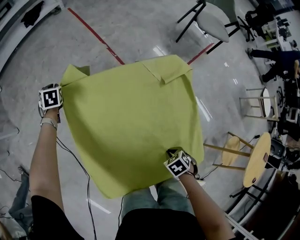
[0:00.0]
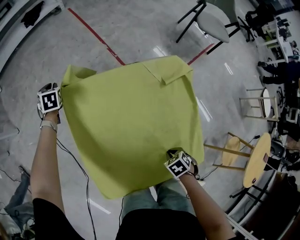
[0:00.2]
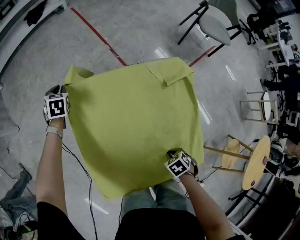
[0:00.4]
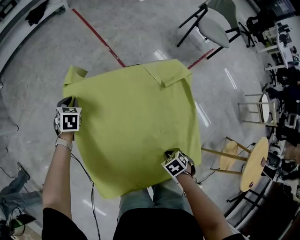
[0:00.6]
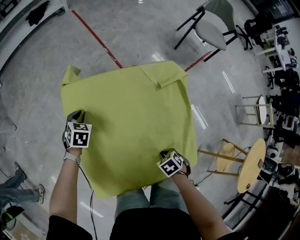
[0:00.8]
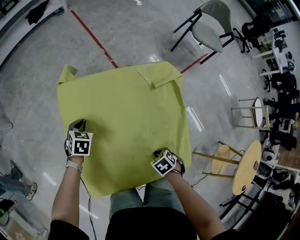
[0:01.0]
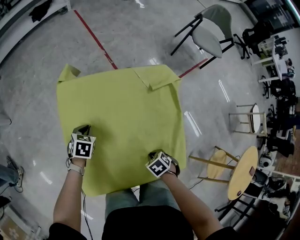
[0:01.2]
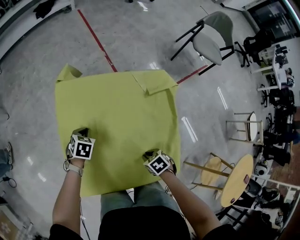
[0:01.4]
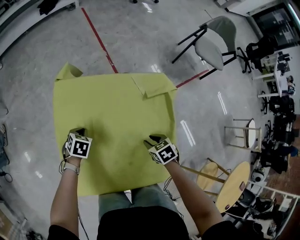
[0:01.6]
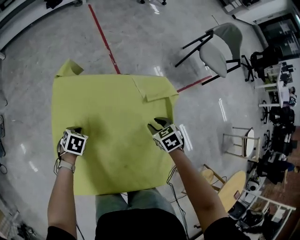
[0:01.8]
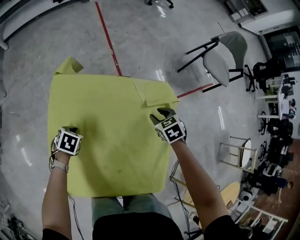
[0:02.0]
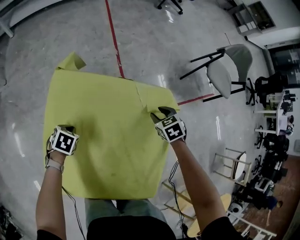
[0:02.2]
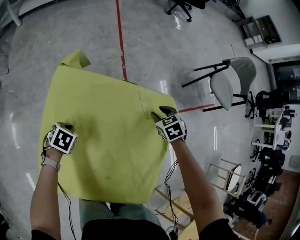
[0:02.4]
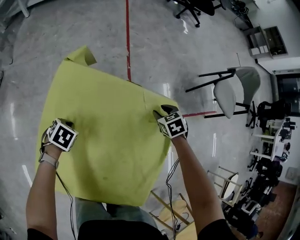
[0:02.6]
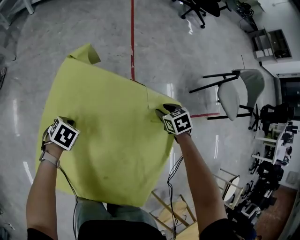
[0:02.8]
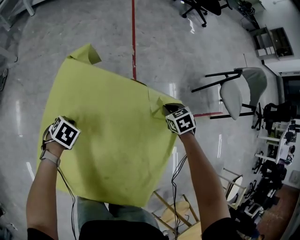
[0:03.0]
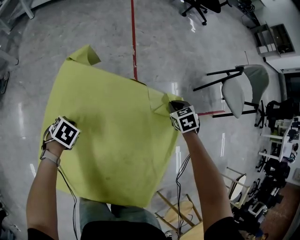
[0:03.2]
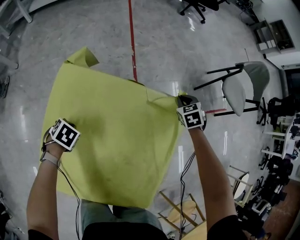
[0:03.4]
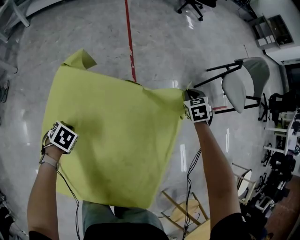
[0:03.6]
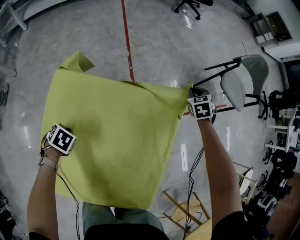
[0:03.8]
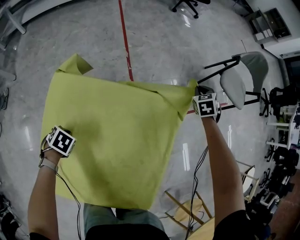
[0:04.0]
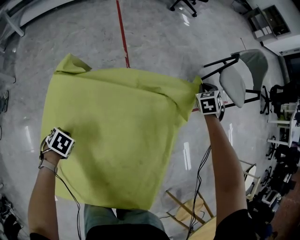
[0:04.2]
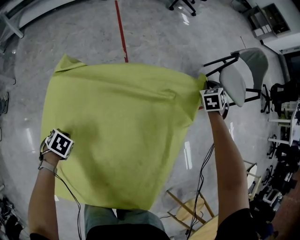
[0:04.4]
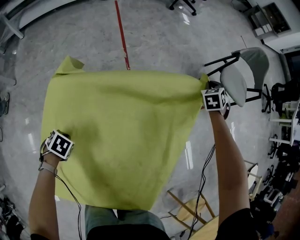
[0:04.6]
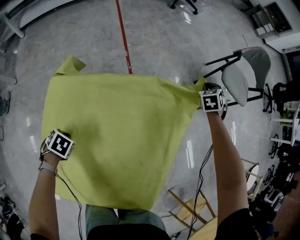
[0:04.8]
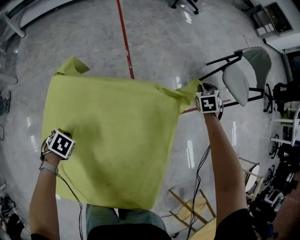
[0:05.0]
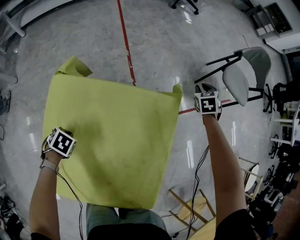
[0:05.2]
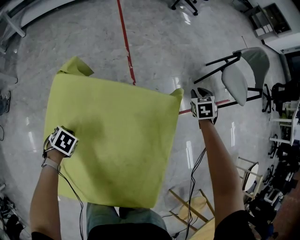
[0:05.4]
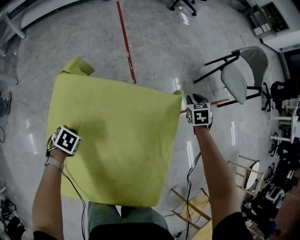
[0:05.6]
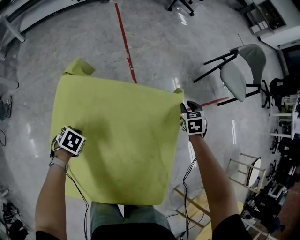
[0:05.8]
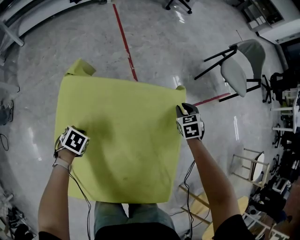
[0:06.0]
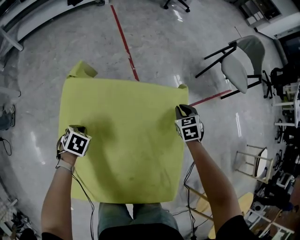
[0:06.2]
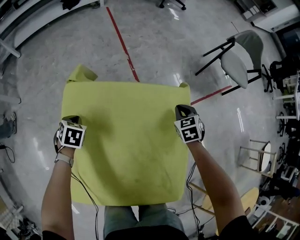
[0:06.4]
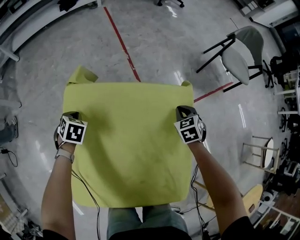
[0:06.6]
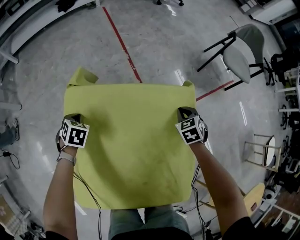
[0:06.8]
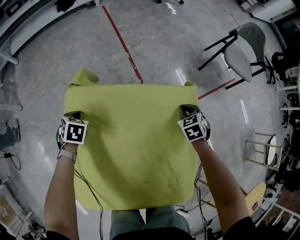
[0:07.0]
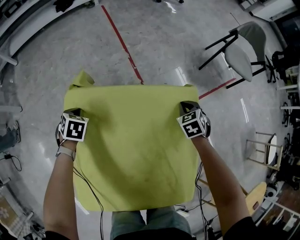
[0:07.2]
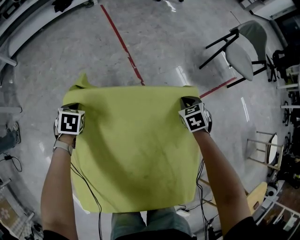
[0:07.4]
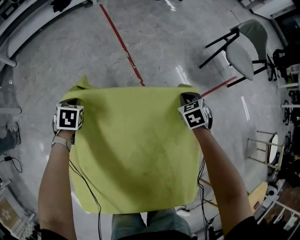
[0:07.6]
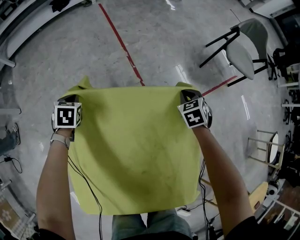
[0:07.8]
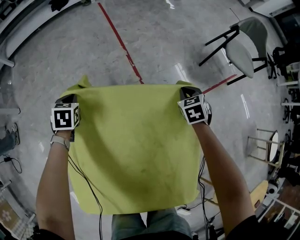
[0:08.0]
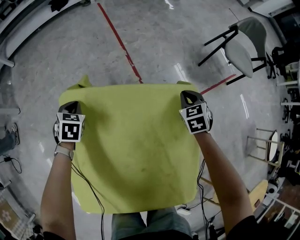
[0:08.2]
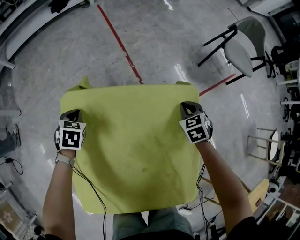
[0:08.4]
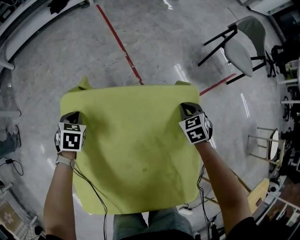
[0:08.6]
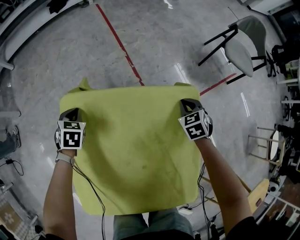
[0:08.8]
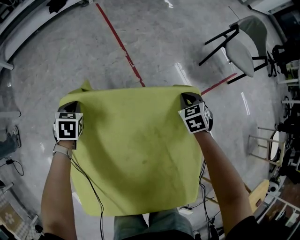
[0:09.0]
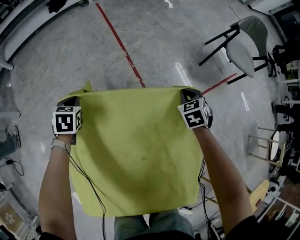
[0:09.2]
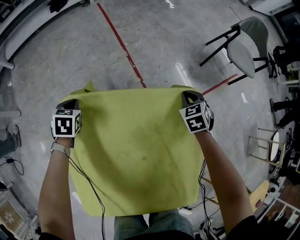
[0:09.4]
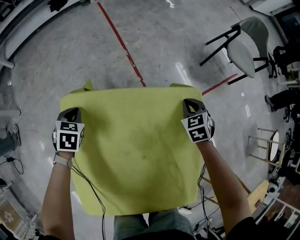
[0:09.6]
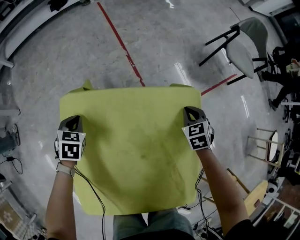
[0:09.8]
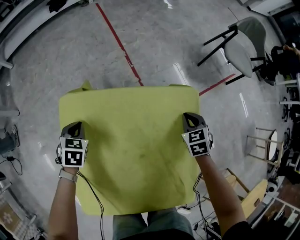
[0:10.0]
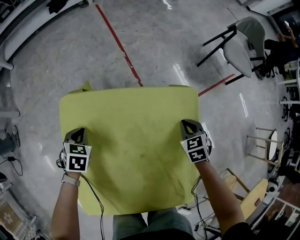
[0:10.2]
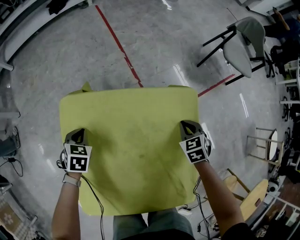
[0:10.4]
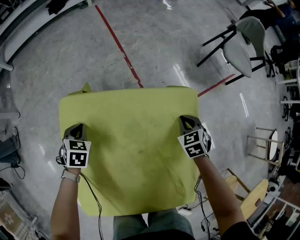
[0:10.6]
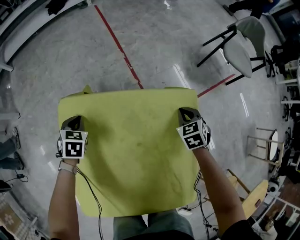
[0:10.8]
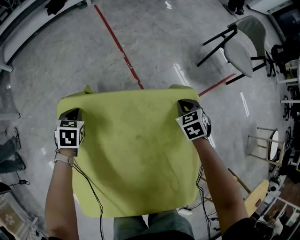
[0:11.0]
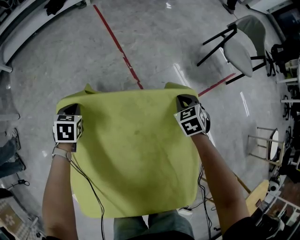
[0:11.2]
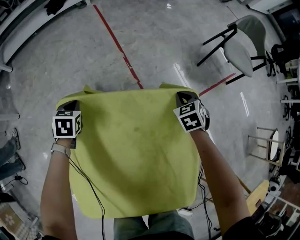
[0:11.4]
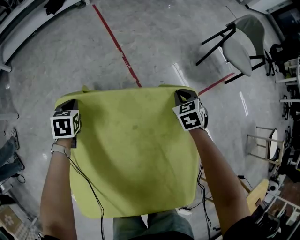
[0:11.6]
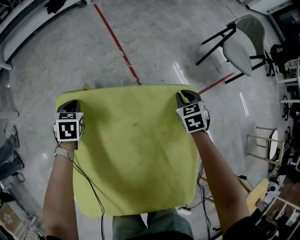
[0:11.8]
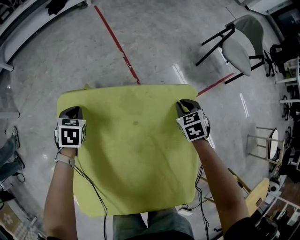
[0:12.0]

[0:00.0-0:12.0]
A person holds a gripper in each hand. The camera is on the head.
0:00.0 to 0:01.6: The left gripper changes place by about 35 cm, and changes its angle by approximately 20 degrees, while the right gripper ends up approximately 15 cm from where it was.
0:01.6 to 0:03.0: The right gripper ends up approximately 30 cm from where it was, rotates roughly 30 degrees, and closes.
0:03.0 to 0:04.4: The right gripper moves approximately 30 cm, and swivels some 40 degrees.
0:04.4 to 0:06.0: The right gripper shifts by some 25 cm, and rotates some 20 degrees.
0:06.0 to 0:07.6: The left gripper shifts by approximately 25 cm, and turns by some 20 degrees, while the right gripper shifts by roughly 5 cm, and closes its fingers.
0:07.6 to 0:09.0: There are only small adjustments of the grippers.
0:09.0 to 0:10.4: Both grippers travel together backward, roughly 10 cm.
0:10.4 to 0:12.0: Both grippers travel together forward, about 10 cm.

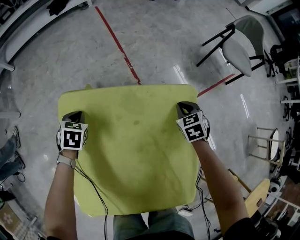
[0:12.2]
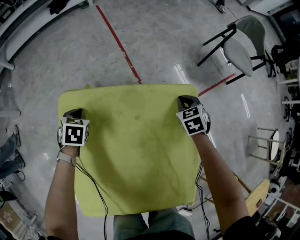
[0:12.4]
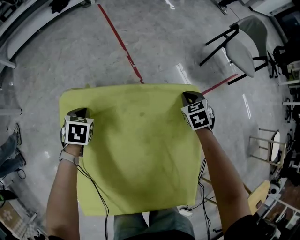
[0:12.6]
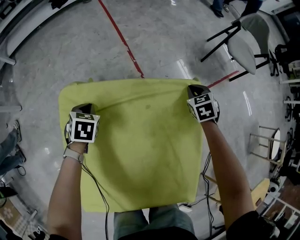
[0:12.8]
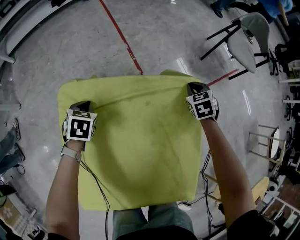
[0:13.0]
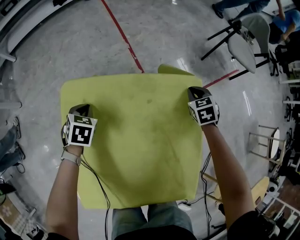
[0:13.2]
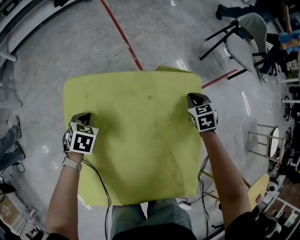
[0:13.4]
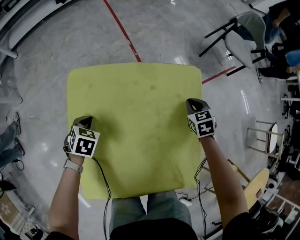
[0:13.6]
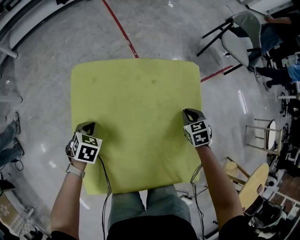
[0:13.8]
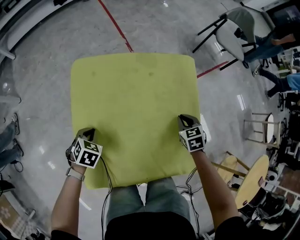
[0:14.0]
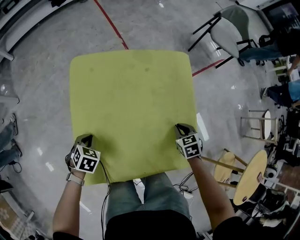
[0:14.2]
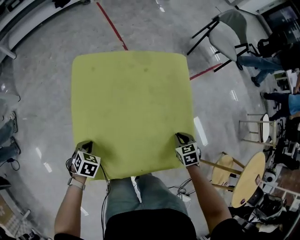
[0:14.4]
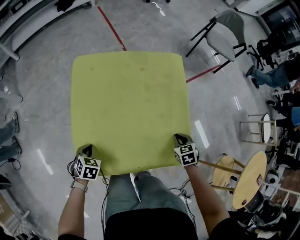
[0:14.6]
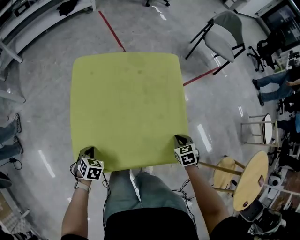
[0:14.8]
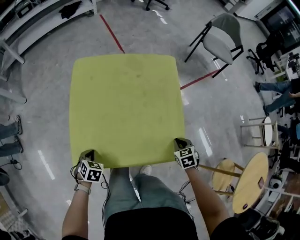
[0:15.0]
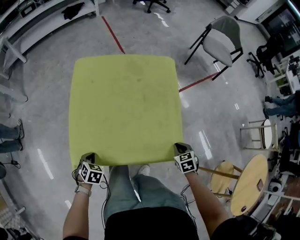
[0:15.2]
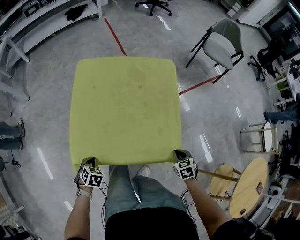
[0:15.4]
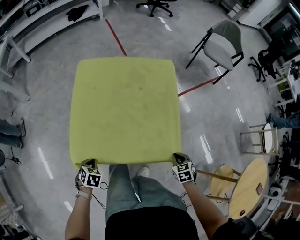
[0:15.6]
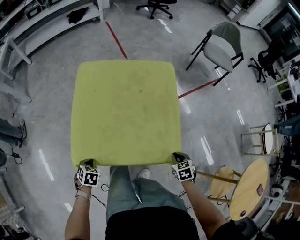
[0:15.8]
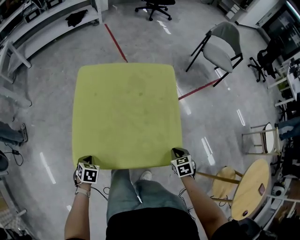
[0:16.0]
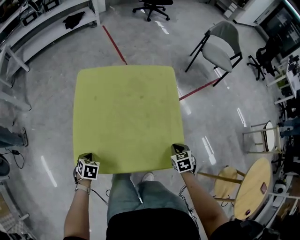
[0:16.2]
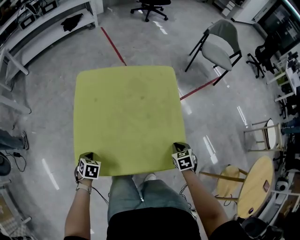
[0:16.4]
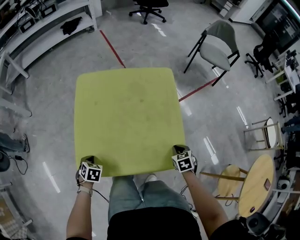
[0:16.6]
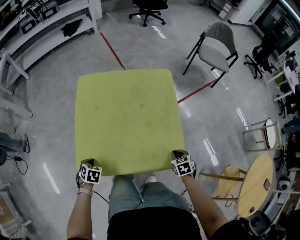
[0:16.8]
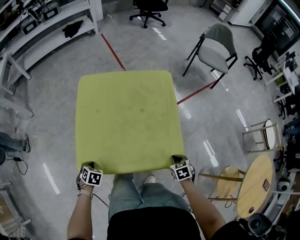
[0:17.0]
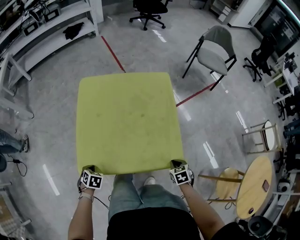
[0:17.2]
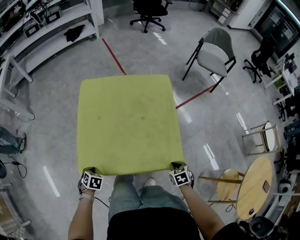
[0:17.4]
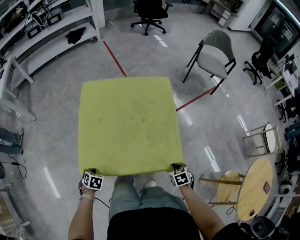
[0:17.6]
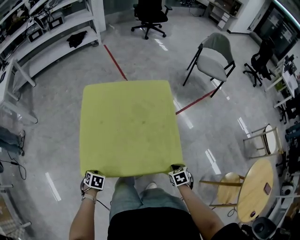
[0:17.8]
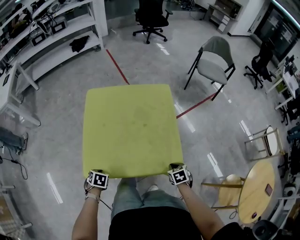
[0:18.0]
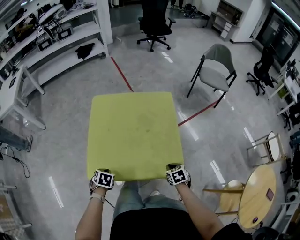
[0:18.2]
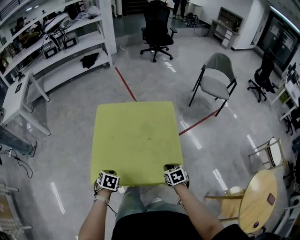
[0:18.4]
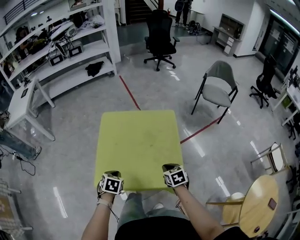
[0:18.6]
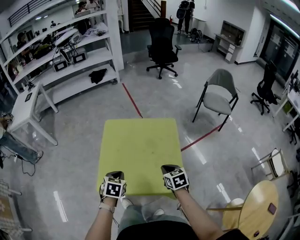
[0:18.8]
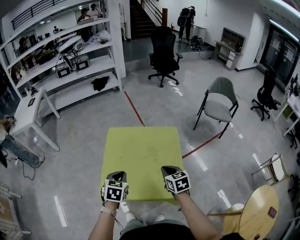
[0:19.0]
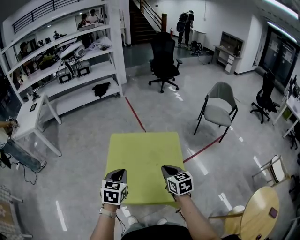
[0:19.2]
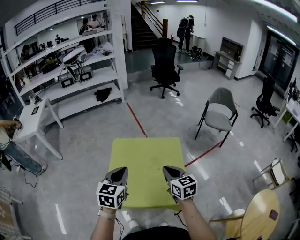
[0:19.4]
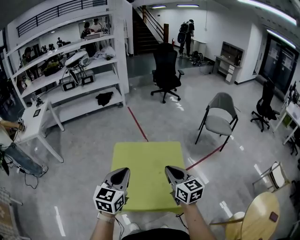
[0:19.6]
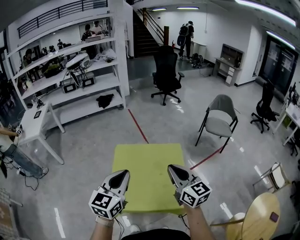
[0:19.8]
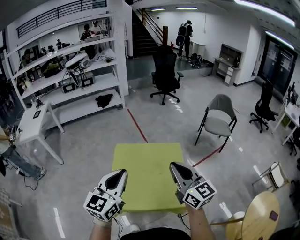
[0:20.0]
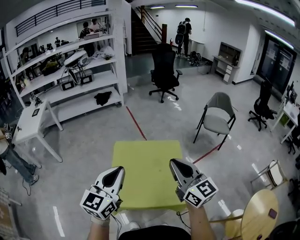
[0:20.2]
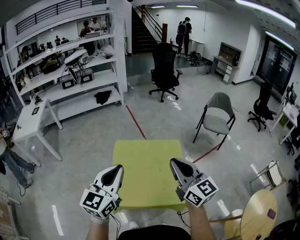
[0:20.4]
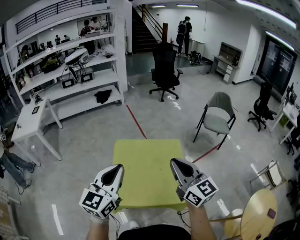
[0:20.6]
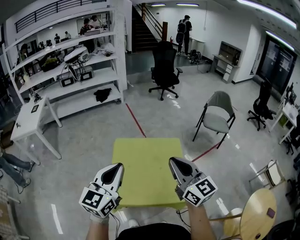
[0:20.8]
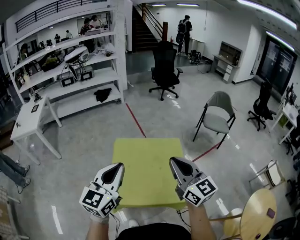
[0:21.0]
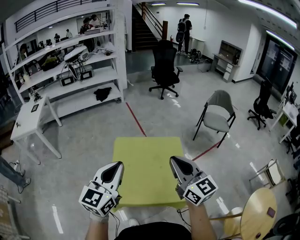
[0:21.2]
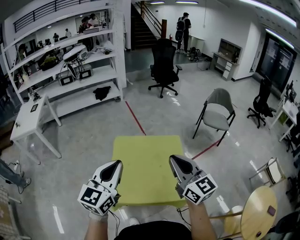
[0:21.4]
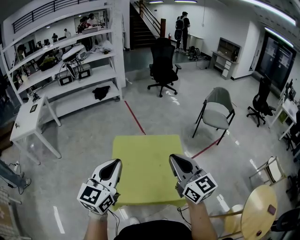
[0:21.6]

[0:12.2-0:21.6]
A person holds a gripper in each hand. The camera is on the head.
0:12.2 to 0:13.8: Both grippers travel together backward, approximately 20 cm.
0:13.8 to 0:15.4: The two grippers go some 30 cm backward.
0:15.4 to 0:17.0: The left gripper reaches about 10 cm forward, then returns. The right gripper reaches some 10 cm forward, then returns.
0:17.0 to 0:18.4: The two grippers go roughly 10 cm upward.
0:18.4 to 0:20.0: Both grippers move upward, roughly 50 cm. The left gripper tips its fingers upward by some 70 degrees, while the right gripper tips its fingers upward by approximately 60 degrees.
0:20.0 to 0:21.6: The grippers move only a little.

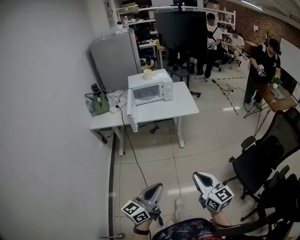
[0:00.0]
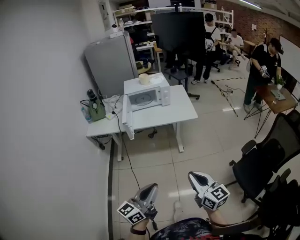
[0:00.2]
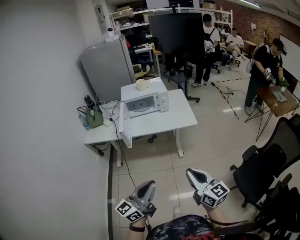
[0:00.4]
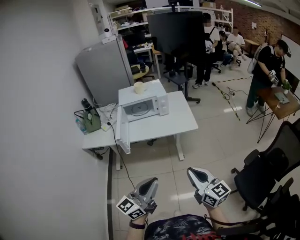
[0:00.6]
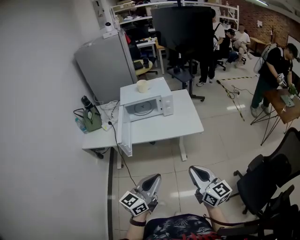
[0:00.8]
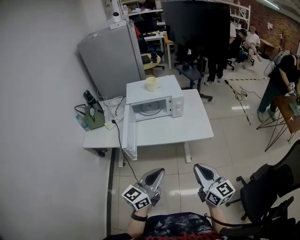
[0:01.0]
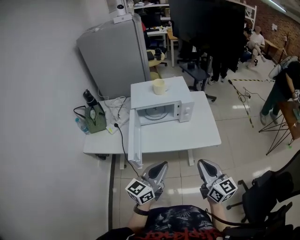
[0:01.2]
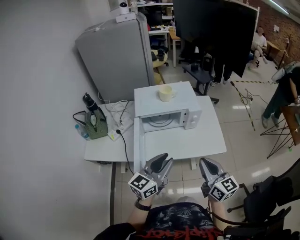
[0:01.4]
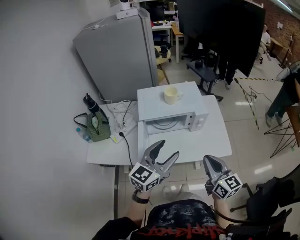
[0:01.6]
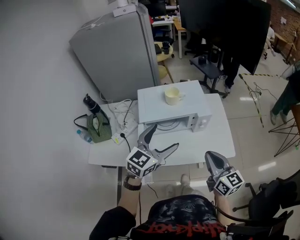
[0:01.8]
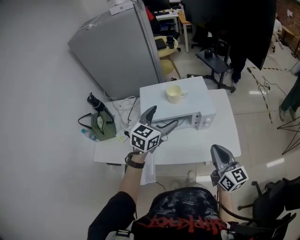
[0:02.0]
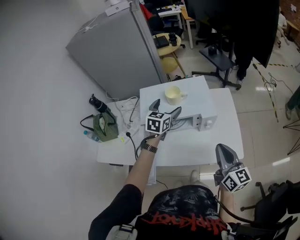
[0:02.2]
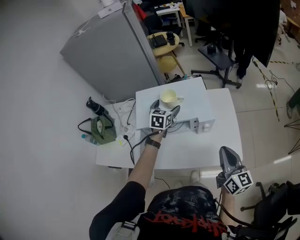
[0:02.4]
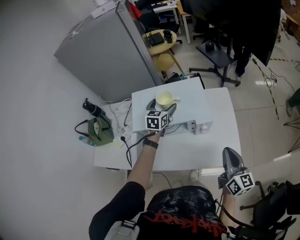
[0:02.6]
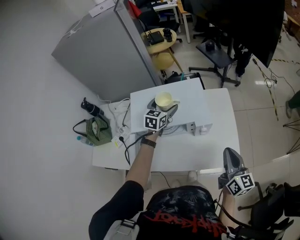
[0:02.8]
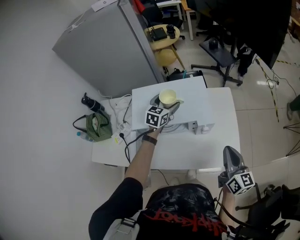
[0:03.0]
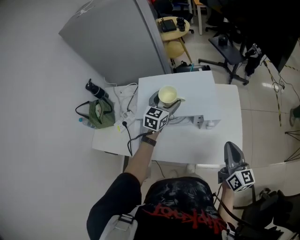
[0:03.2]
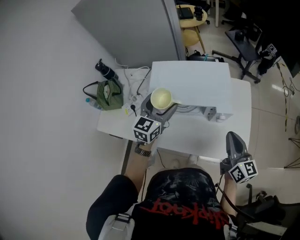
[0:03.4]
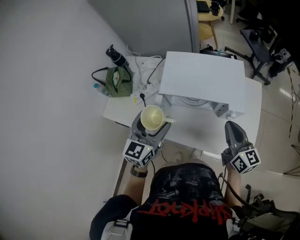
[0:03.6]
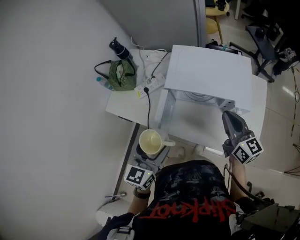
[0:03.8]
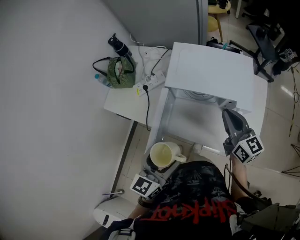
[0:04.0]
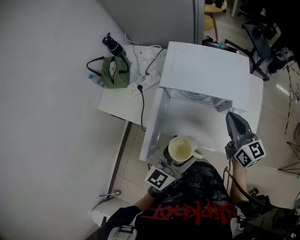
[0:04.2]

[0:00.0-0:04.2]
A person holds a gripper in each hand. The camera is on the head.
0:00.0 to 0:01.4: The two grippers travel together, forward, some 60 cm.
0:01.4 to 0:02.8: The right gripper travels forward and to the right by roughly 30 cm; the left gripper is displaced forward by some 50 cm, turns by roughly 40 degrees, and opens its fingers.
0:02.8 to 0:04.2: The right gripper moves some 20 cm, and turns by some 30 degrees, while the left gripper changes place by some 35 cm, and rotates roughly 20 degrees.
